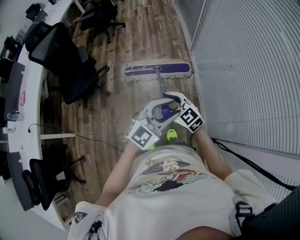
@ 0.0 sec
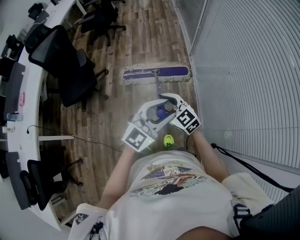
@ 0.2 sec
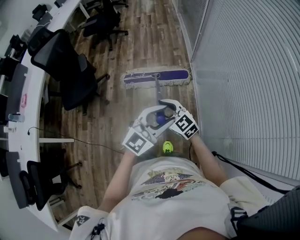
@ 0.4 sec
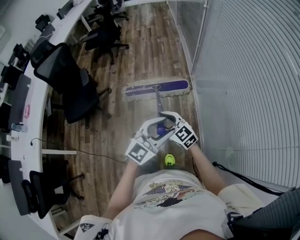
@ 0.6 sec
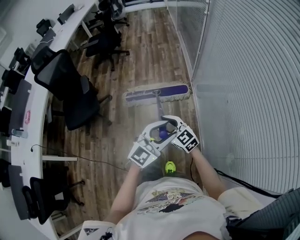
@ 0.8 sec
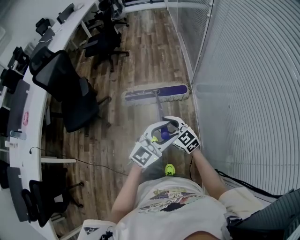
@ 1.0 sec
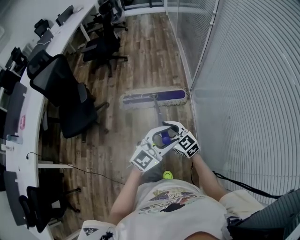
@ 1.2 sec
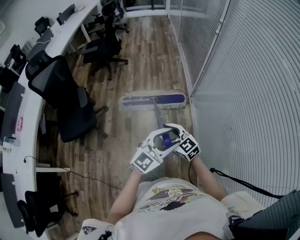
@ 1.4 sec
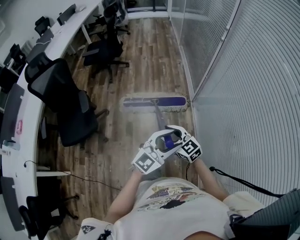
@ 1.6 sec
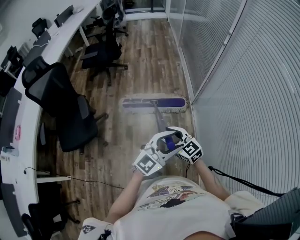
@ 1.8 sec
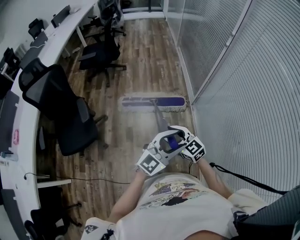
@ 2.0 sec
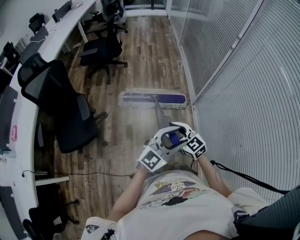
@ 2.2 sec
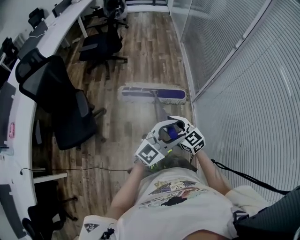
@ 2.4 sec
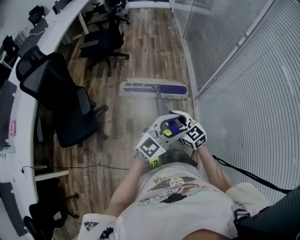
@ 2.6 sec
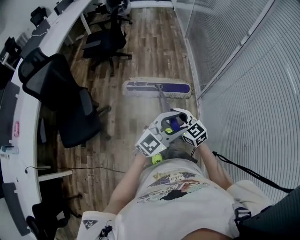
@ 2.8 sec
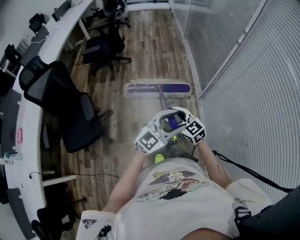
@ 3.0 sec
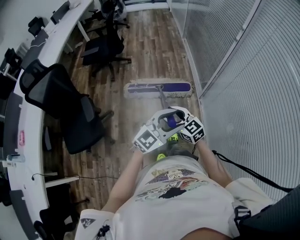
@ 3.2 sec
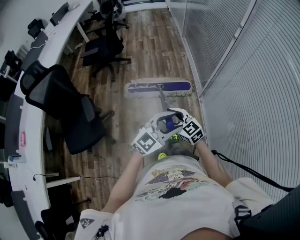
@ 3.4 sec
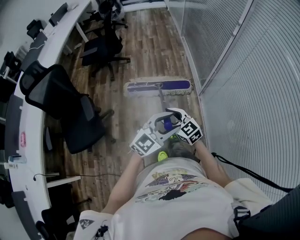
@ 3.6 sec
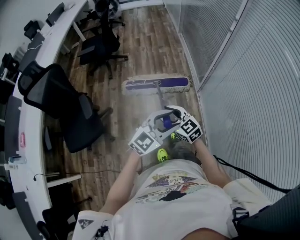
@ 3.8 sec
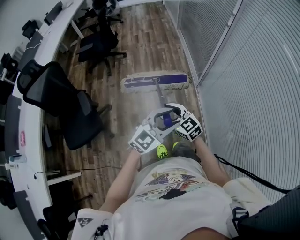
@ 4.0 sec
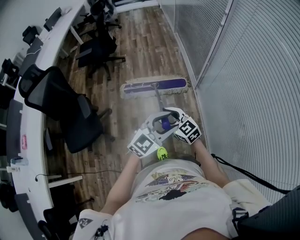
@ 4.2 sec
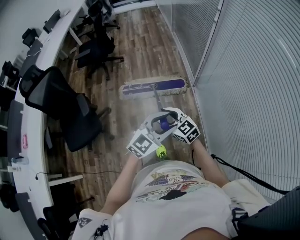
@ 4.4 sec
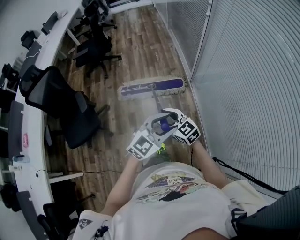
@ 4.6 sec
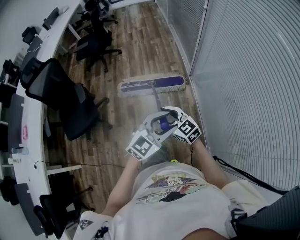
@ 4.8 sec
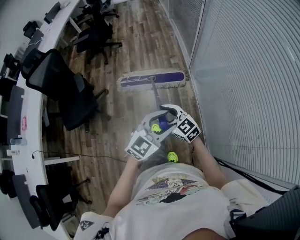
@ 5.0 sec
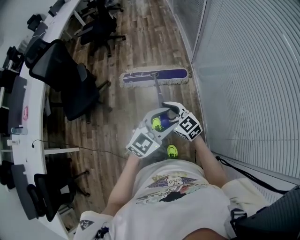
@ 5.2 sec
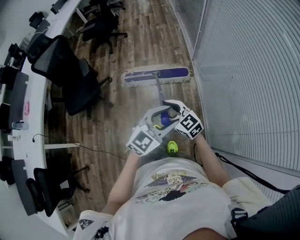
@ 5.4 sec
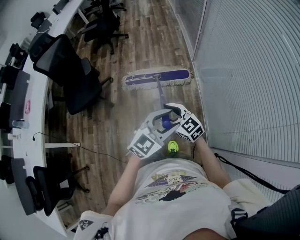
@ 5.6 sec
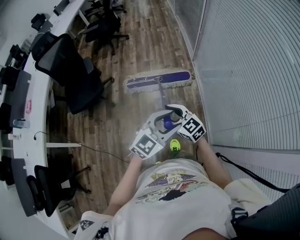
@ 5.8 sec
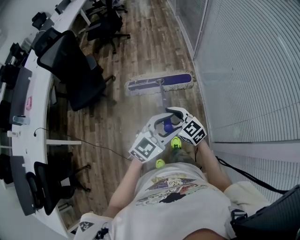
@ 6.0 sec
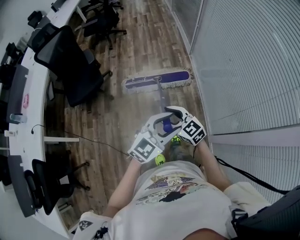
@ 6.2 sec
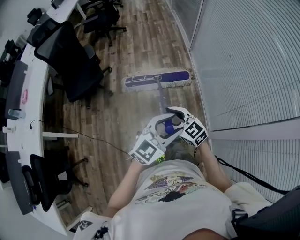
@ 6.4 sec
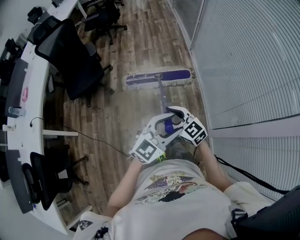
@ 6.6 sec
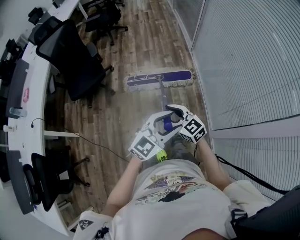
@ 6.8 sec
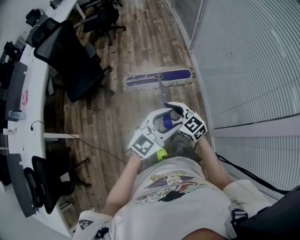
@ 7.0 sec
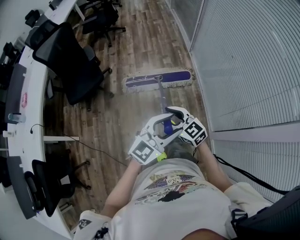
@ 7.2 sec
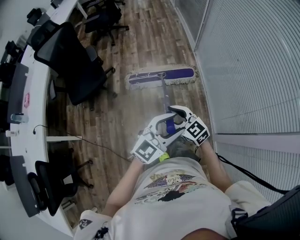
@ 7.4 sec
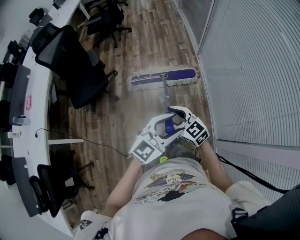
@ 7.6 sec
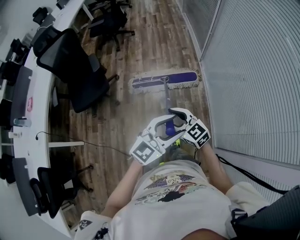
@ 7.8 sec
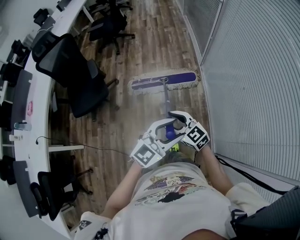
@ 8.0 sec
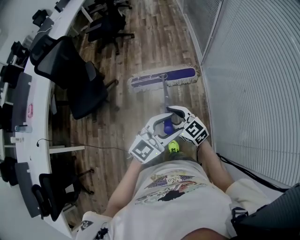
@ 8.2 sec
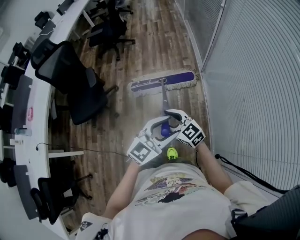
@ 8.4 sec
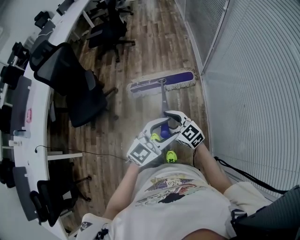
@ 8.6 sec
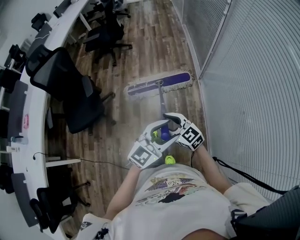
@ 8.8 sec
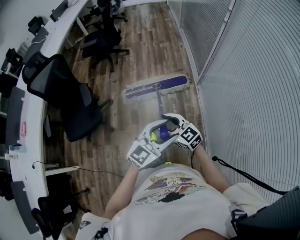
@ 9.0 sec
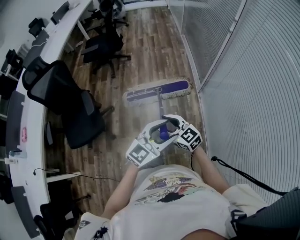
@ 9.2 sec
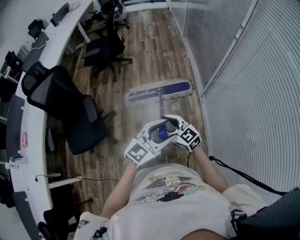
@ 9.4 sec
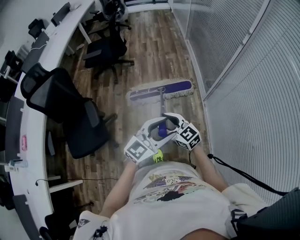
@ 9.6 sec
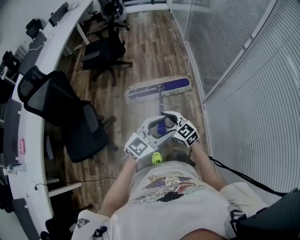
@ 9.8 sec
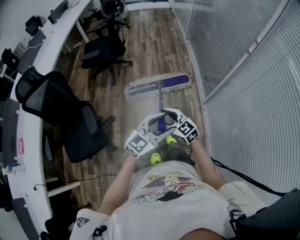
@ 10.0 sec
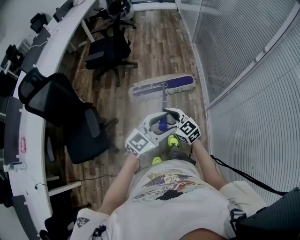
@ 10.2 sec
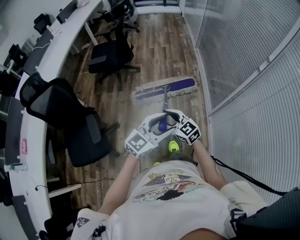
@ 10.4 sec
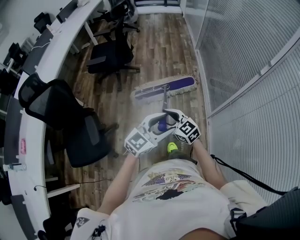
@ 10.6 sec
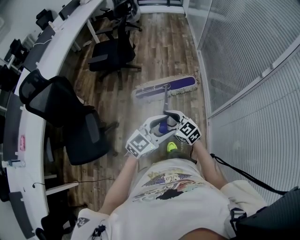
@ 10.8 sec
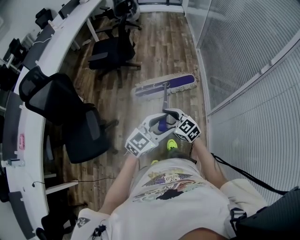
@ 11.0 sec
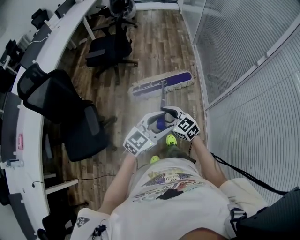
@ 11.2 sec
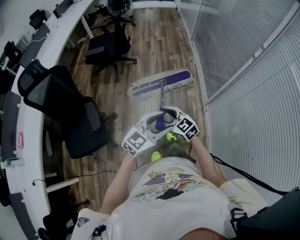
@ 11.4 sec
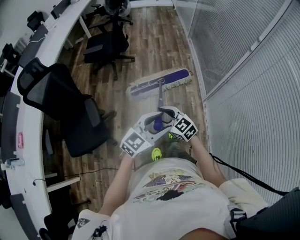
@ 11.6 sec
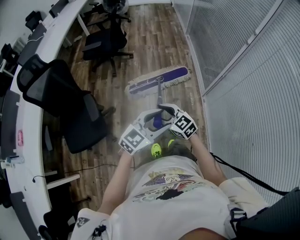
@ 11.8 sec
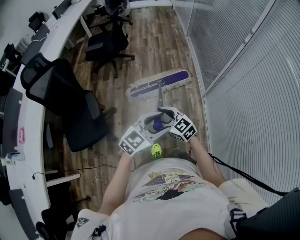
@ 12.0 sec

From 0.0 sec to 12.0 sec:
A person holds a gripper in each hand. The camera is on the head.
From 0.0 sec to 1.6 sec: Both grippers travel together forward, about 30 cm.
From 1.6 sec to 3.0 sec: Both grippers travel together forward and to the left, approximately 20 cm.
From 3.0 sec to 4.4 sec: The two grippers go approximately 15 cm backward and to the right.
From 4.4 sec to 6.0 sec: The two grippers travel together, backward, approximately 40 cm.
From 6.0 sec to 7.6 sec: Both grippers move to the left, roughly 5 cm. The right gripper moves some 10 cm backward and comes back. Meanwhile the left gripper moves roughly 10 cm backward and comes back.
From 7.6 sec to 9.0 sec: Both grippers move forward, approximately 35 cm.
From 9.0 sec to 10.4 sec: Both grippers are carried forward, about 40 cm.
From 10.4 sec to 12.0 sec: The two grippers go approximately 25 cm backward.

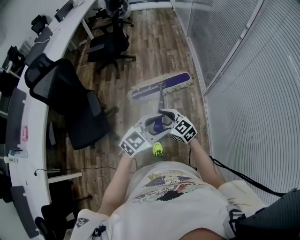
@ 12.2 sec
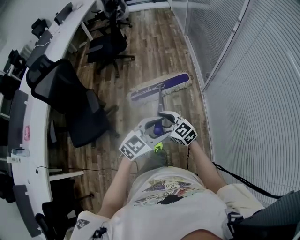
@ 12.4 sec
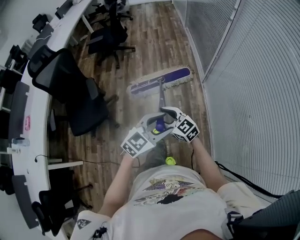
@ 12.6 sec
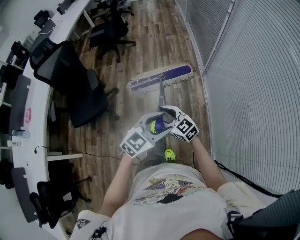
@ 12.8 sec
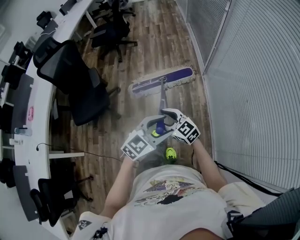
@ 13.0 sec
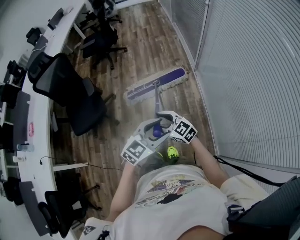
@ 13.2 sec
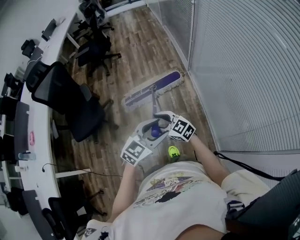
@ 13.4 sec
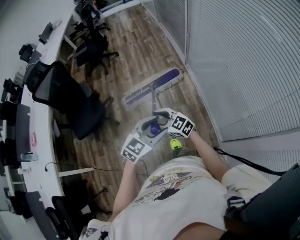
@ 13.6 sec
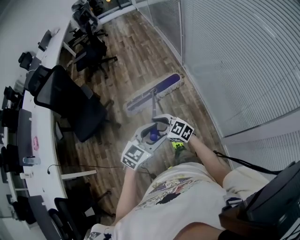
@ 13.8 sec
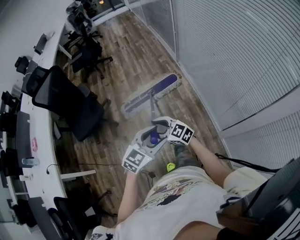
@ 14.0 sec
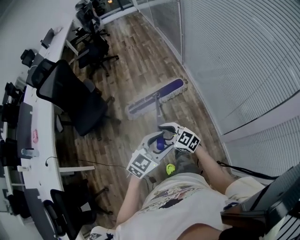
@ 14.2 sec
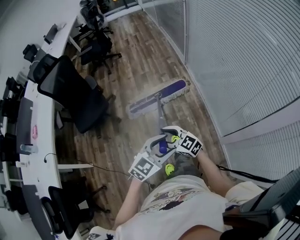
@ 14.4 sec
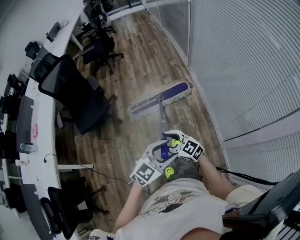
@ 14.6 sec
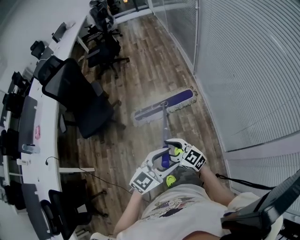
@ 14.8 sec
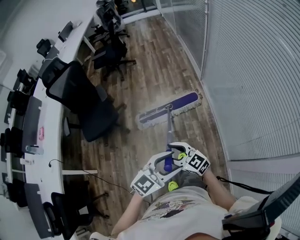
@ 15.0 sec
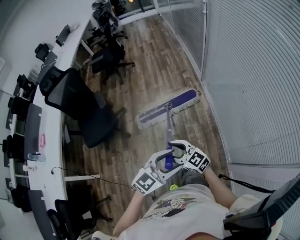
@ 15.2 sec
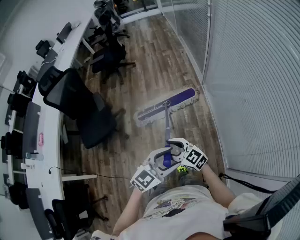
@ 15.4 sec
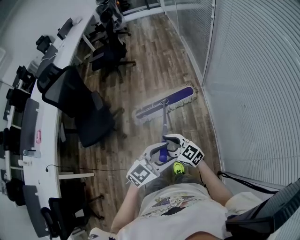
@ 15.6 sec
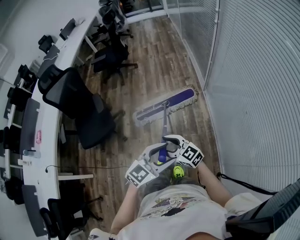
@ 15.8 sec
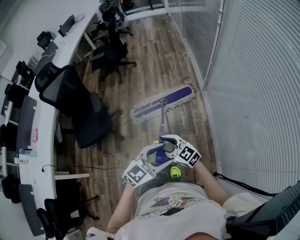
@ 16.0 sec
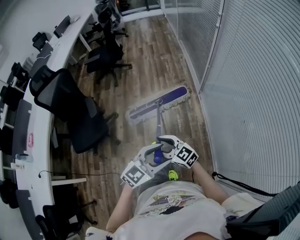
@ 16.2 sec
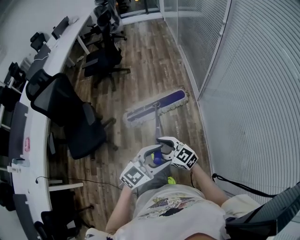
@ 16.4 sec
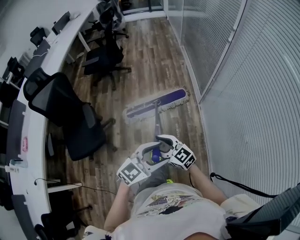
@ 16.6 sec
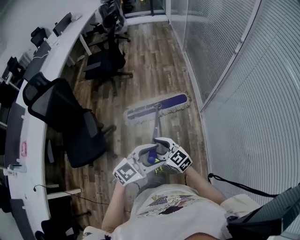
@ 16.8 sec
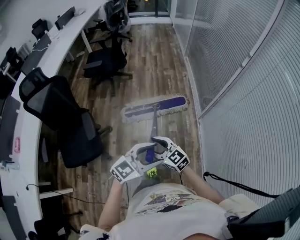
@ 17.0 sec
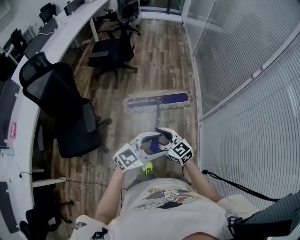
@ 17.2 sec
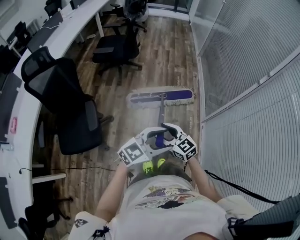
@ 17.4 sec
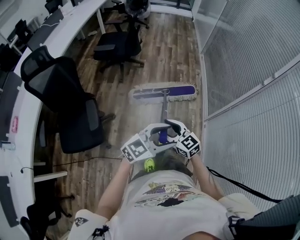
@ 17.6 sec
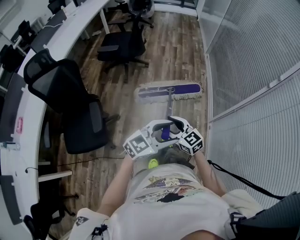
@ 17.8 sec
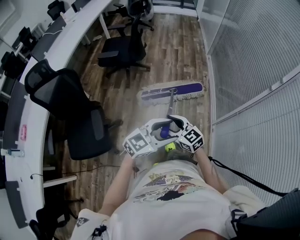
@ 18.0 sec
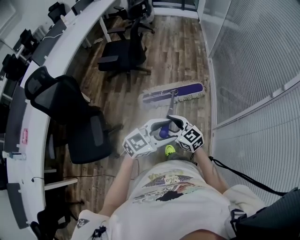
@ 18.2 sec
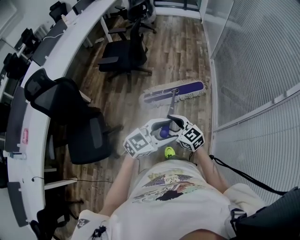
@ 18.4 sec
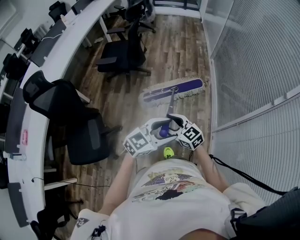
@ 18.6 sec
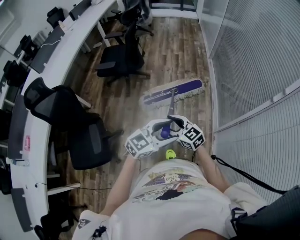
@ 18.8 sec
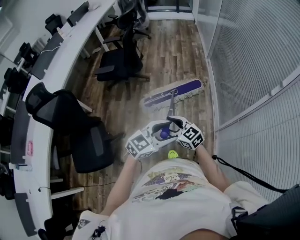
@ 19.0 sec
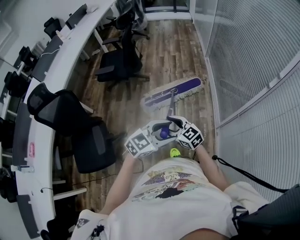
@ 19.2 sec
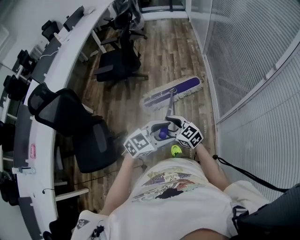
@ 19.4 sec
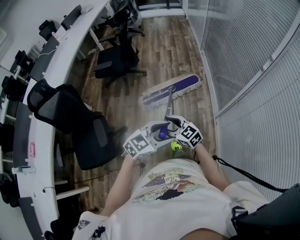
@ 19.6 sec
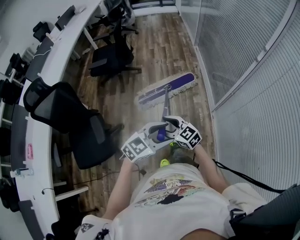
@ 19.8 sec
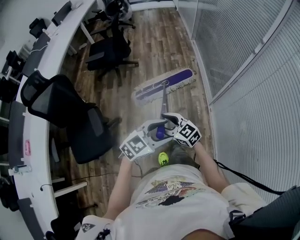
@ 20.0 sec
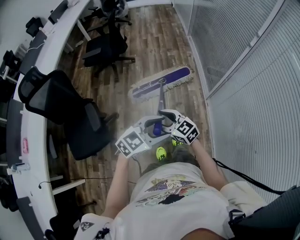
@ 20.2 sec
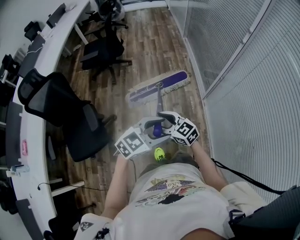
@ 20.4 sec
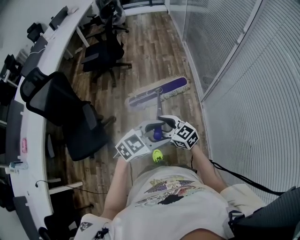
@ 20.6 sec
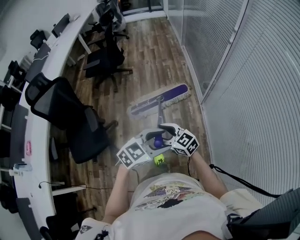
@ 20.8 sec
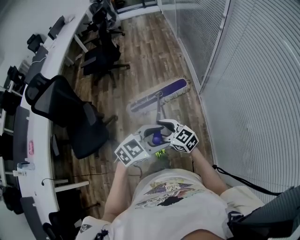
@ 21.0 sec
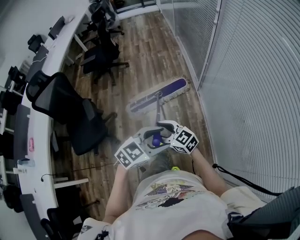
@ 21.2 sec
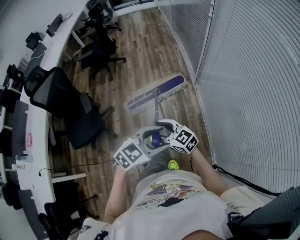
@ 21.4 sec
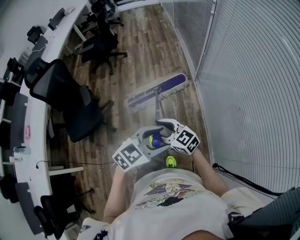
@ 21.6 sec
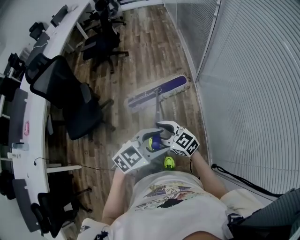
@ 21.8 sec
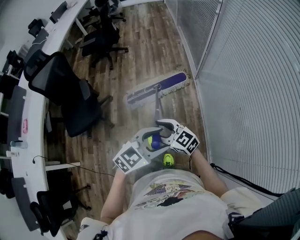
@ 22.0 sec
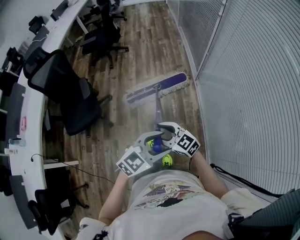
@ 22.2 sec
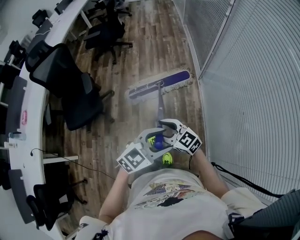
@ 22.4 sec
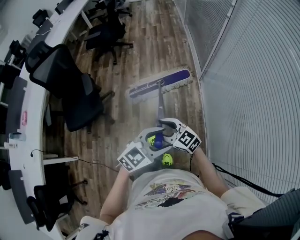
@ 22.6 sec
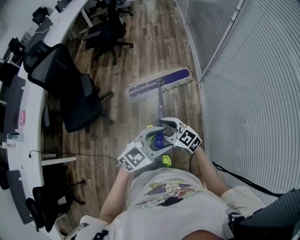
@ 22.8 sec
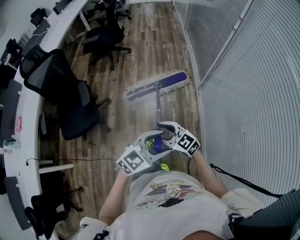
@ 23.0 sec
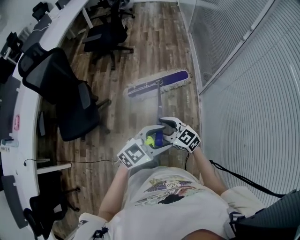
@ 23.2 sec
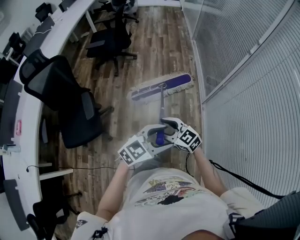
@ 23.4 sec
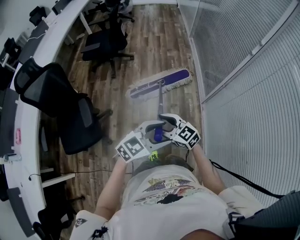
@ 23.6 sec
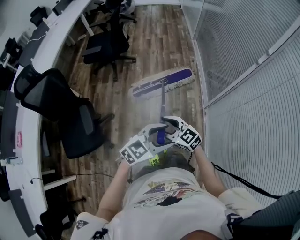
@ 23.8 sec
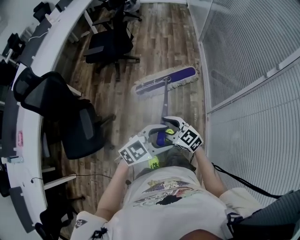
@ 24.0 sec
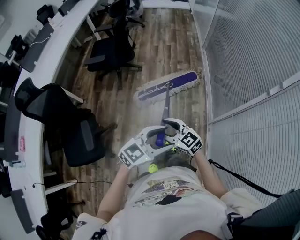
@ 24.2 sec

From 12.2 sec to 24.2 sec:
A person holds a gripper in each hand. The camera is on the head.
From 12.2 sec to 13.8 sec: The two grippers travel together, backward, some 50 cm.
From 13.8 sec to 15.2 sec: The left gripper moves some 15 cm backward and comes back. The right gripper travels backward and back again, roughly 15 cm each way.
From 15.2 sec to 16.6 sec: Both grippers travel together forward, approximately 35 cm.
From 16.6 sec to 18.2 sec: The pair of grippers is taken forward, roughly 40 cm.
From 18.2 sec to 19.8 sec: Both grippers travel together backward, roughly 15 cm.
From 19.8 sec to 21.2 sec: The right gripper changes place by about 35 cm. Meanwhile the left gripper moves approximately 35 cm.
From 21.2 sec to 22.6 sec: The right gripper shifts by some 10 cm, while the left gripper changes place by about 10 cm.
From 22.6 sec to 24.2 sec: The pair of grippers is taken about 60 cm.
